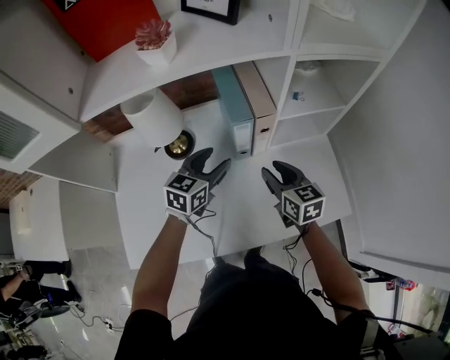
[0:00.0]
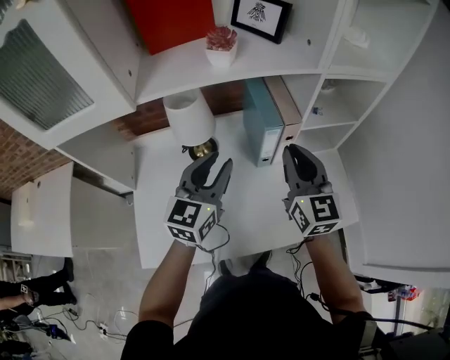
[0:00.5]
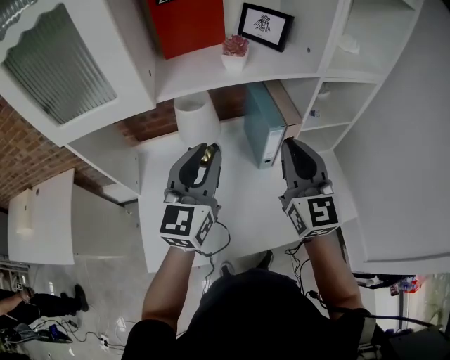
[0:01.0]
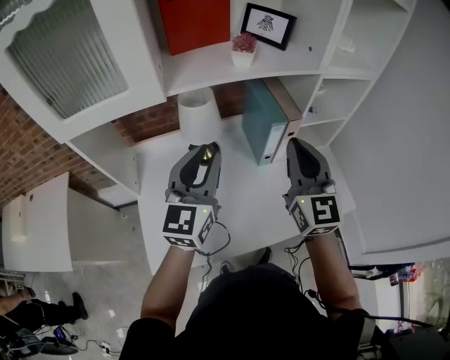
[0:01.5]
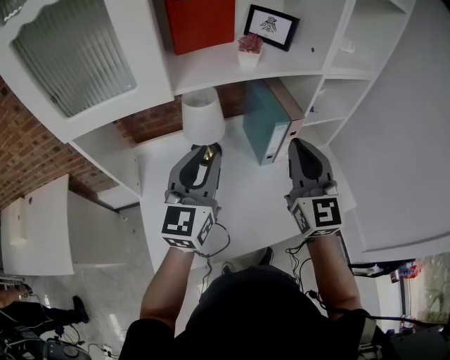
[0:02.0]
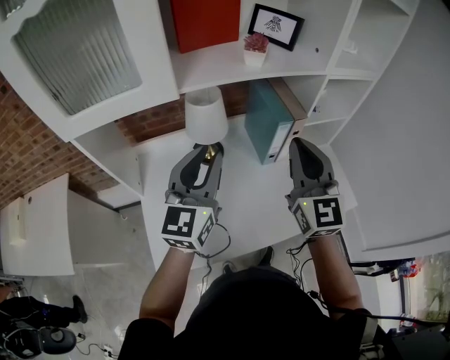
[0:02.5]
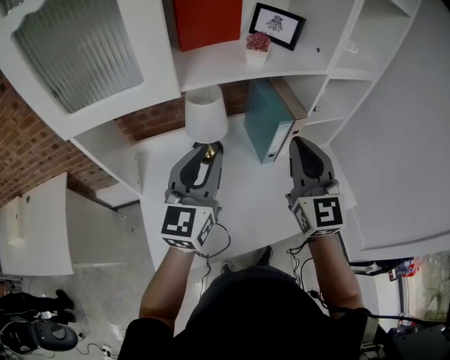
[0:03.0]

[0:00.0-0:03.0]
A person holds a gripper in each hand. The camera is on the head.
0:00.0 to 0:01.5: The left gripper goes approximately 30 cm upward, to the left and backward, rotates about 30 degrees, and closes. Meanwhile the right gripper is displaced upward by some 25 cm, rotates approximately 40 degrees, and closes.
0:01.5 to 0:03.0: The grippers make only small movements.

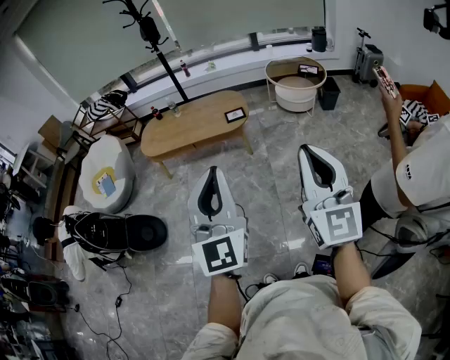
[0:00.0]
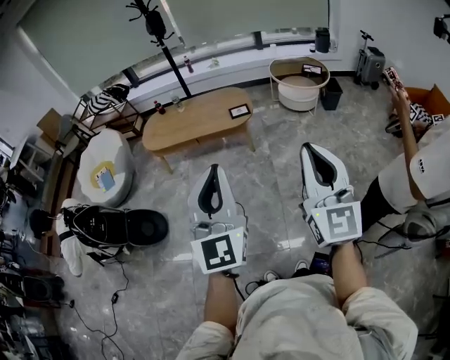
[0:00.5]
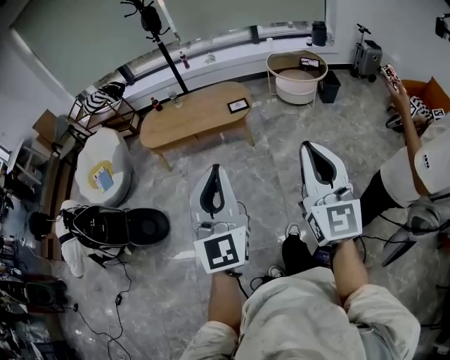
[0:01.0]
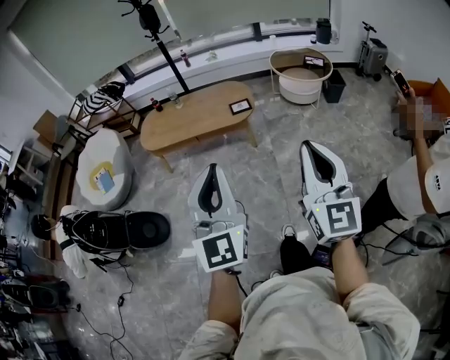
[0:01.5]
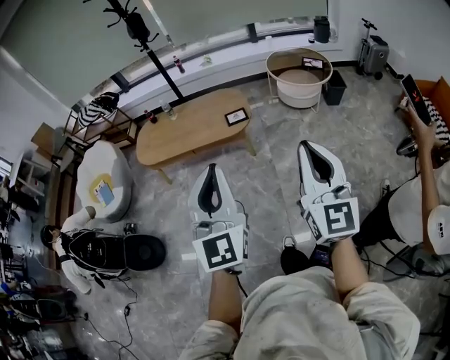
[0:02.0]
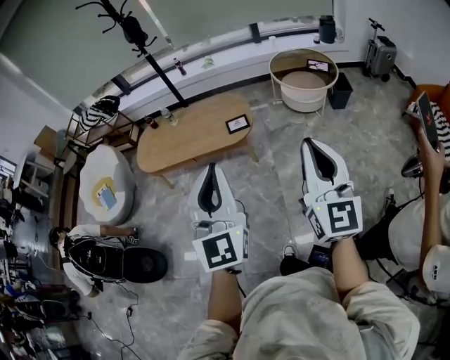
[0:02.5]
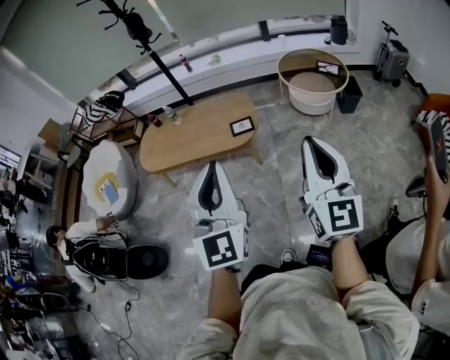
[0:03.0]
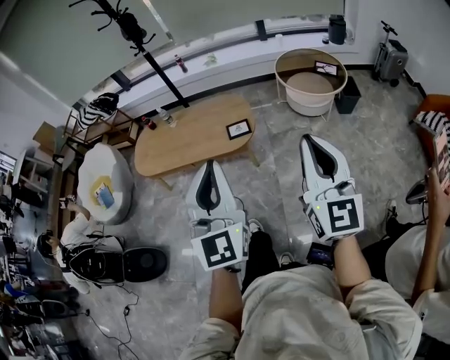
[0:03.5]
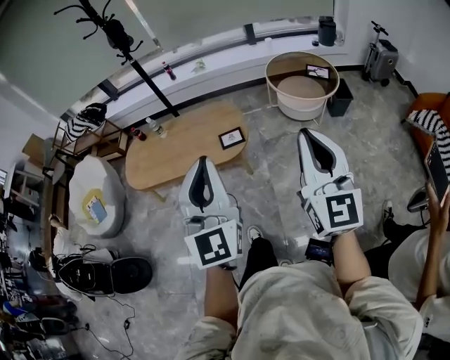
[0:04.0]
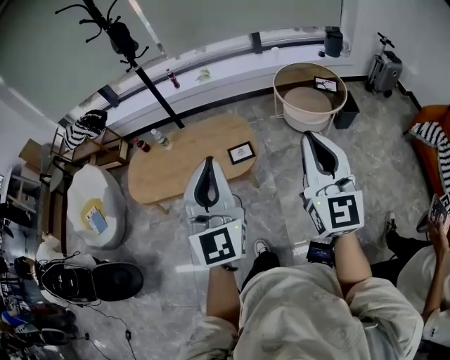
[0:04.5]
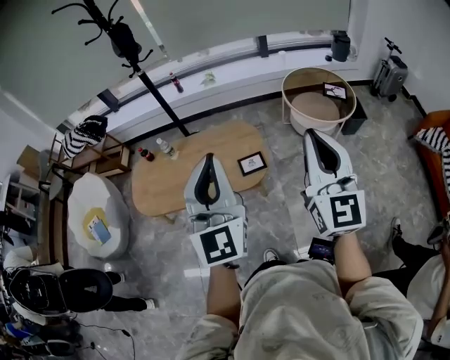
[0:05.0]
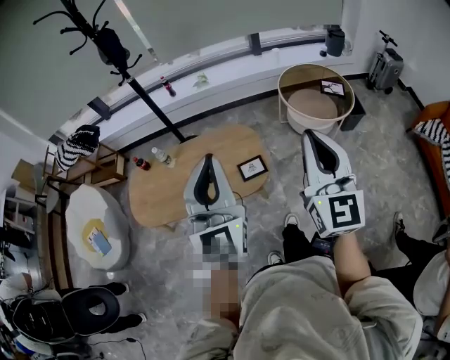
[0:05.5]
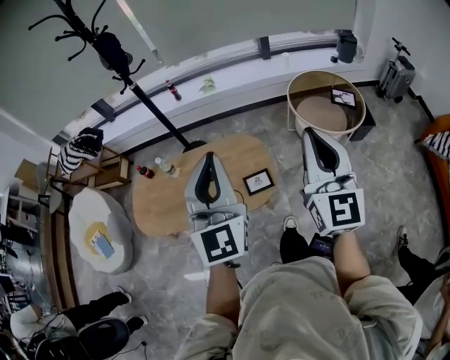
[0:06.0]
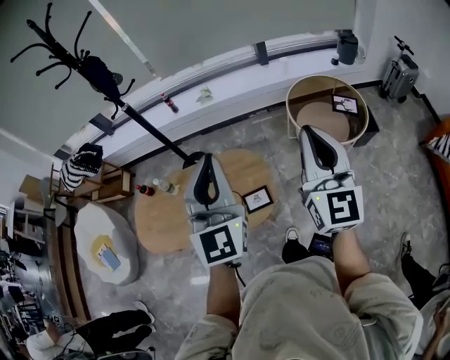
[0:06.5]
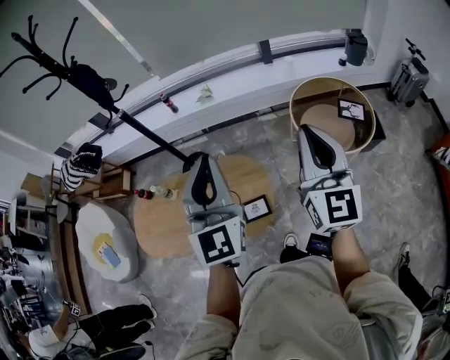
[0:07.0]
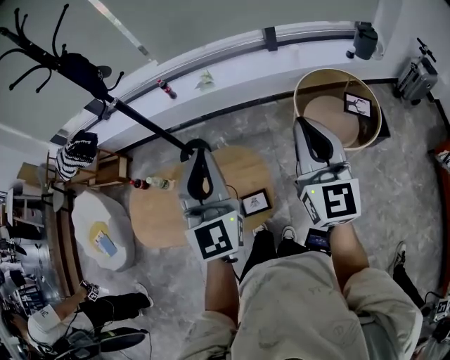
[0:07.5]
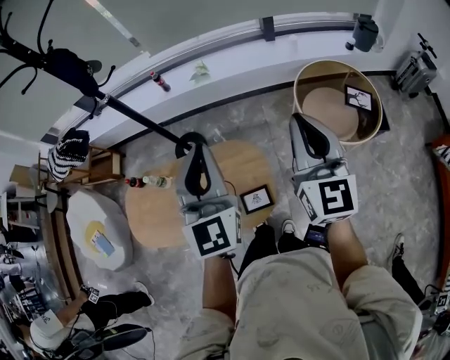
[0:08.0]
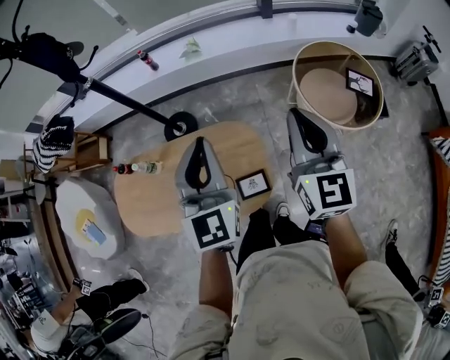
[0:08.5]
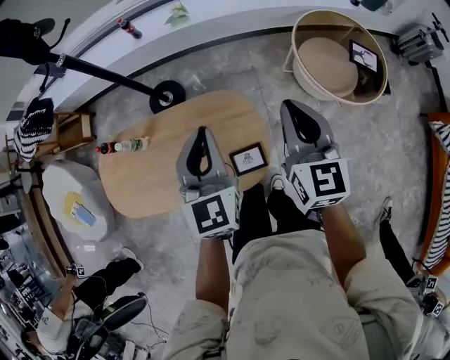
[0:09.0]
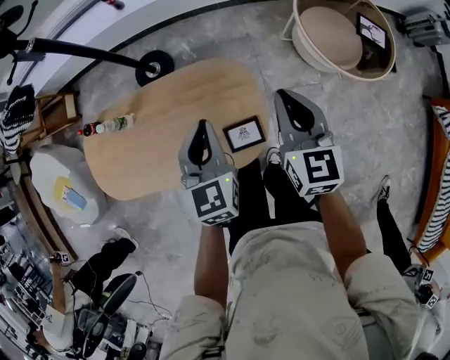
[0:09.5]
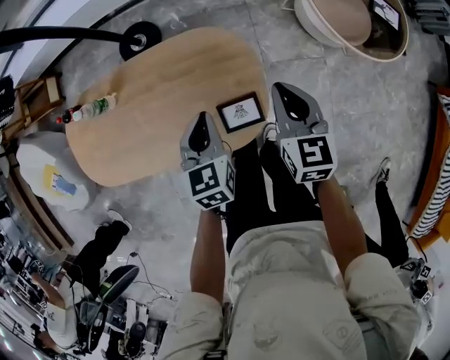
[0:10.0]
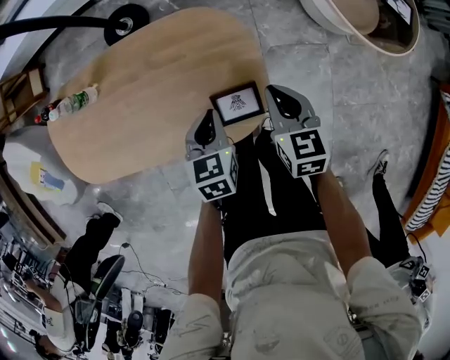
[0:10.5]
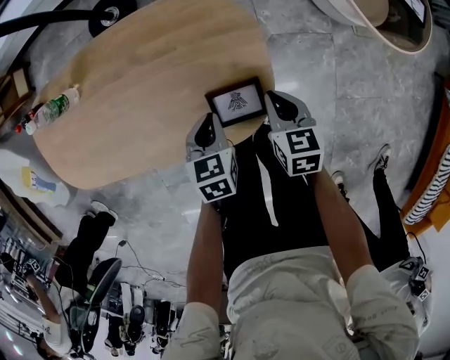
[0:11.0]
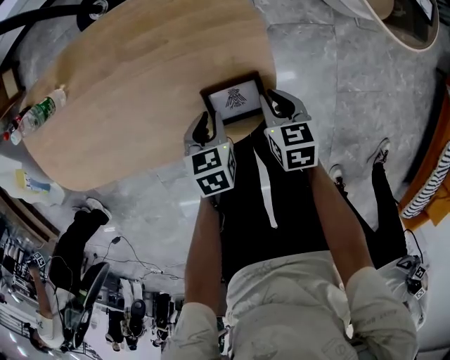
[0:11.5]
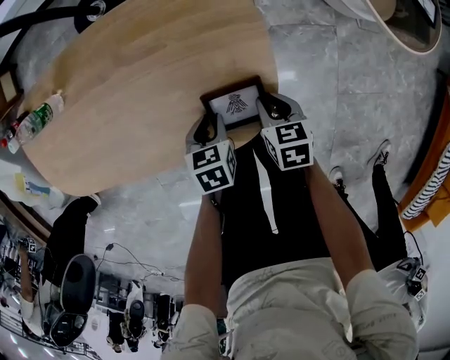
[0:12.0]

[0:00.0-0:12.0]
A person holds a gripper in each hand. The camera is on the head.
0:00.0 to 0:02.0: Both grippers travel together forward, about 15 cm.
0:02.0 to 0:04.0: The two grippers go roughly 25 cm forward.
0:04.0 to 0:06.0: The two grippers go about 30 cm forward.
0:06.0 to 0:08.0: Both grippers travel together forward, approximately 30 cm.
0:08.0 to 0:10.0: The two grippers go some 40 cm downward. The left gripper angles its fingers downward, by approximately 40 degrees, while the right gripper tips its fingers downward by approximately 40 degrees.
0:10.0 to 0:12.0: Both grippers move downward, roughly 30 cm. The right gripper tilts its fingers approximately 30 degrees downward. Meanwhile the left gripper rotates some 30 degrees, and opens.

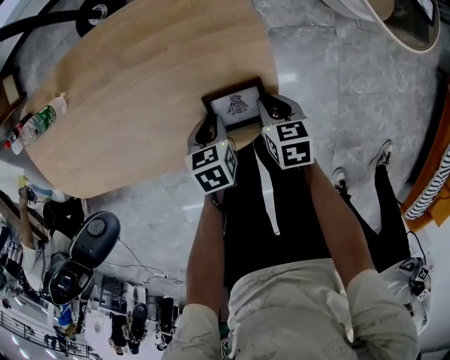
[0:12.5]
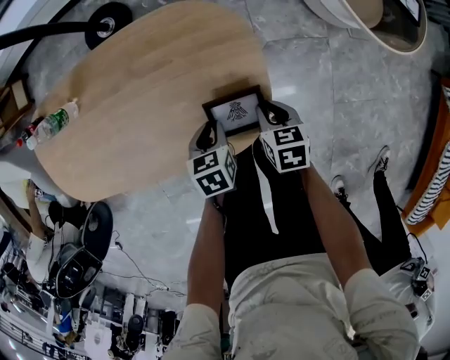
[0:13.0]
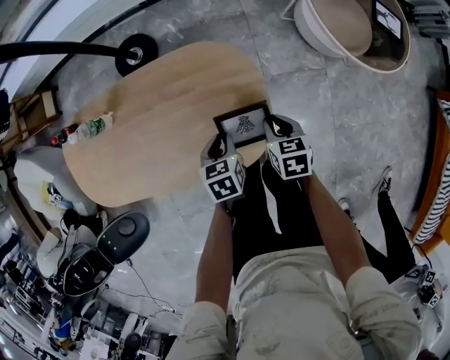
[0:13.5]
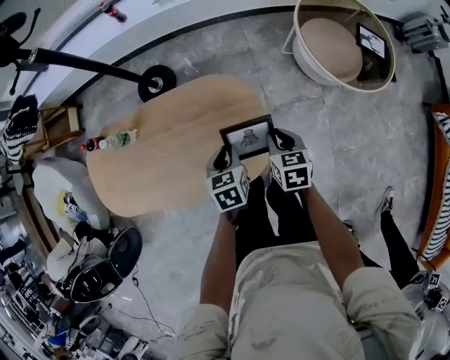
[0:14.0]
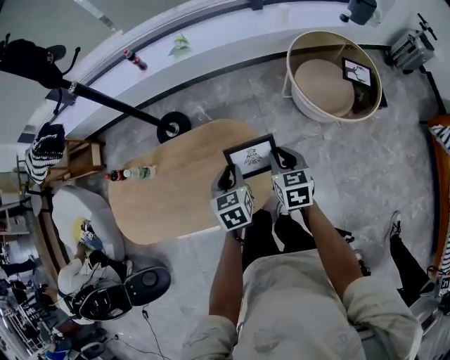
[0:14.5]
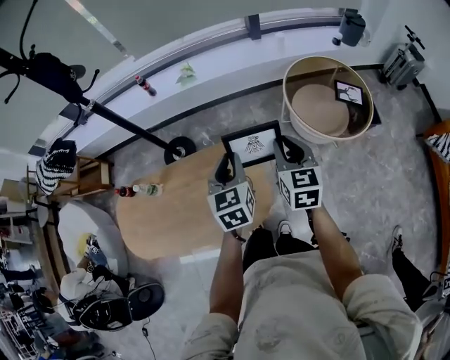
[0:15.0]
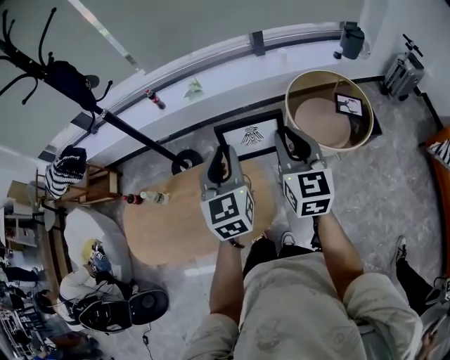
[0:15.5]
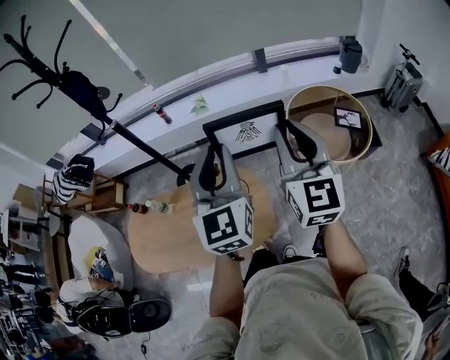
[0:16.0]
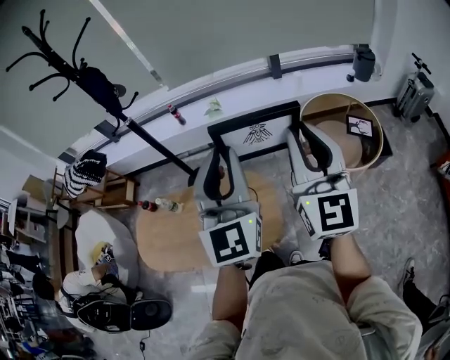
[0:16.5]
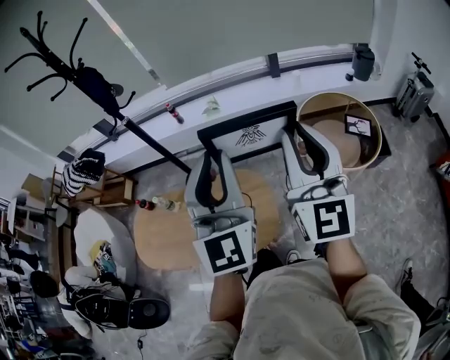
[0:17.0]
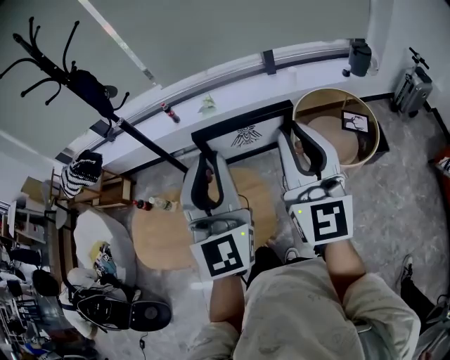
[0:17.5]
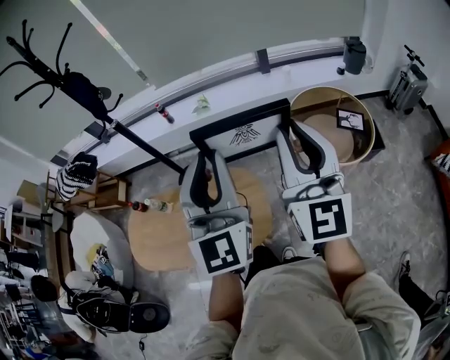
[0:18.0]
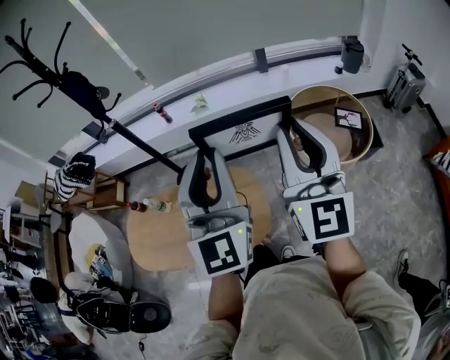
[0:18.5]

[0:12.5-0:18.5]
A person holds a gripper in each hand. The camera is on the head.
0:12.5 to 0:14.5: Both grippers travel together upward, about 30 cm. The left gripper swivels some 30 degrees. The right gripper turns by about 30 degrees.
0:14.5 to 0:16.5: Both grippers move upward, approximately 40 cm. The left gripper angles its fingers upward, by roughly 50 degrees, while the right gripper tilts its fingers approximately 50 degrees upward.
0:16.5 to 0:18.5: The grippers move only a little.

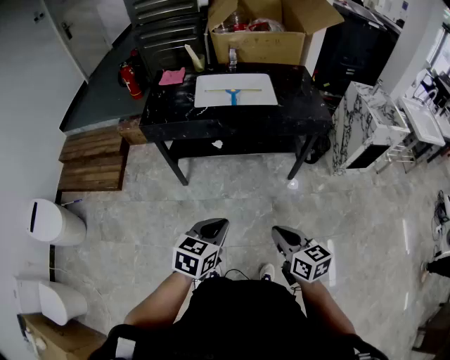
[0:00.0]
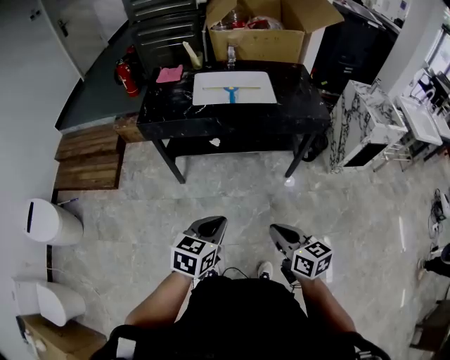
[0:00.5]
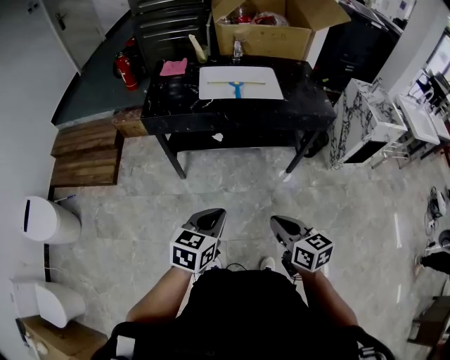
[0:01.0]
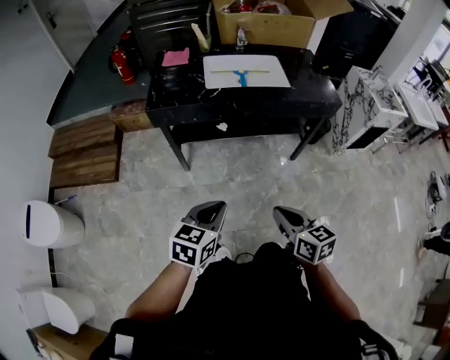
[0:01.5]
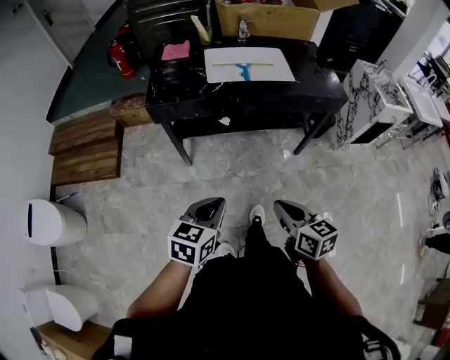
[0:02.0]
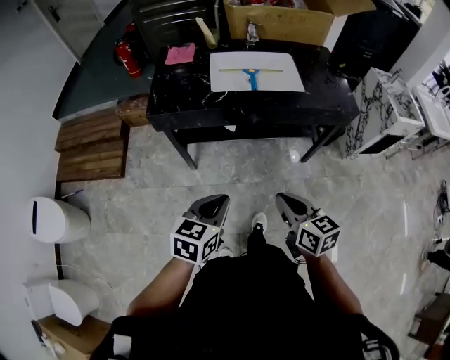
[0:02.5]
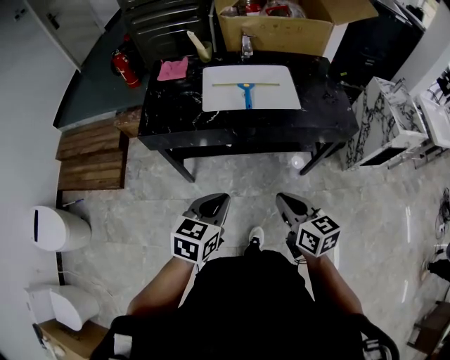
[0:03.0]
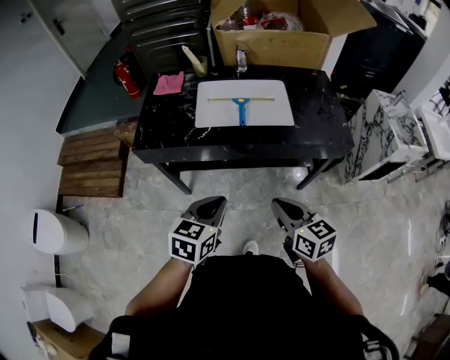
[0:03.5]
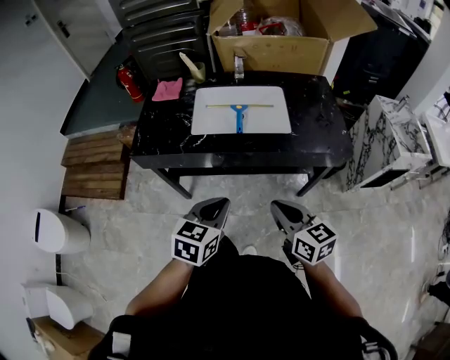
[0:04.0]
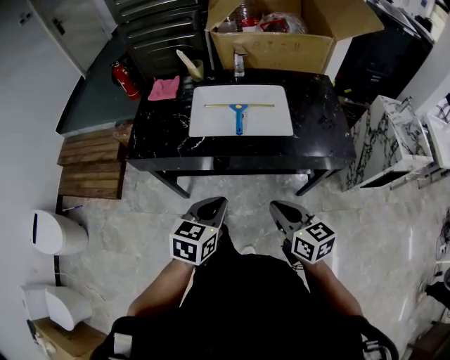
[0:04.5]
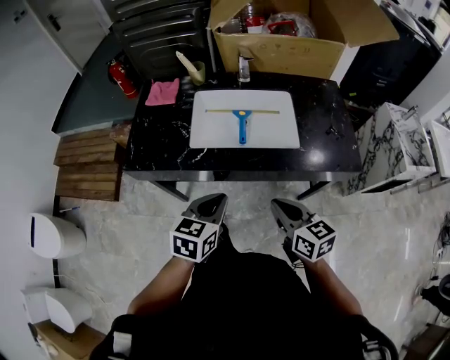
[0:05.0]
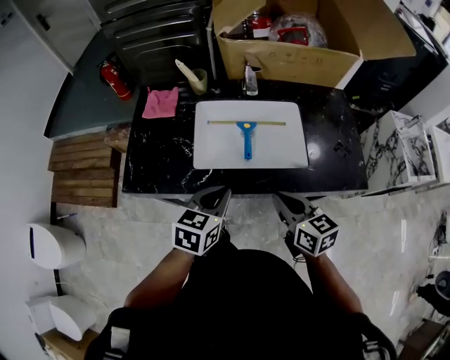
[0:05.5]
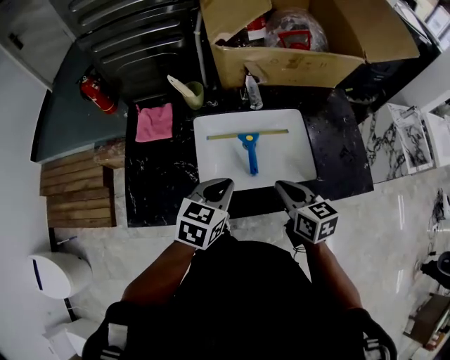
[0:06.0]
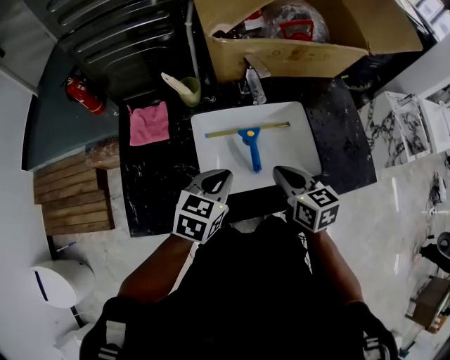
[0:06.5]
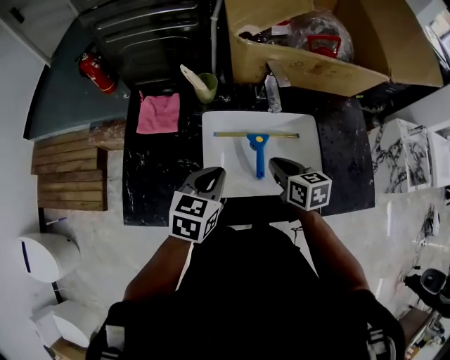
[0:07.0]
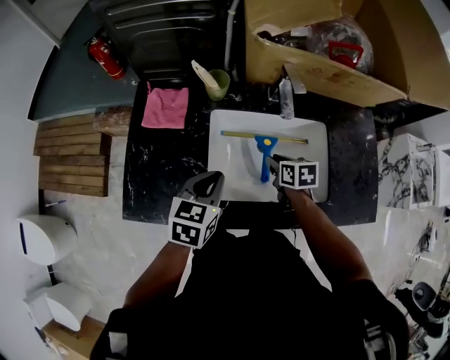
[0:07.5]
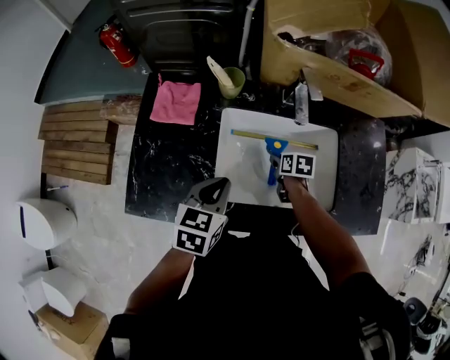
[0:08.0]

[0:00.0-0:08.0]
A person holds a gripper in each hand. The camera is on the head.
0:00.0 to 0:02.0: The two grippers go roughly 15 cm to the left.
0:02.0 to 0:04.0: Both grippers move forward and to the right, about 25 cm.
0:04.0 to 0:06.0: The two grippers go about 30 cm forward.
0:06.0 to 0:08.0: The right gripper heads downward and forward, covering approximately 30 cm, tips its fingers downward by roughly 30 degrees, and opens its fingers. Meanwhile the left gripper heads to the left and forward, covering some 10 cm.
